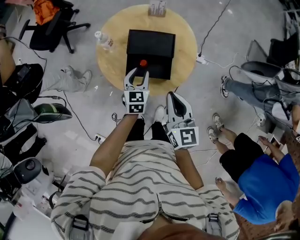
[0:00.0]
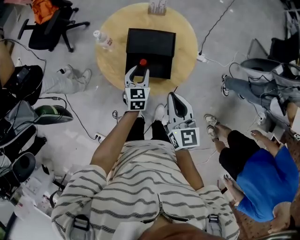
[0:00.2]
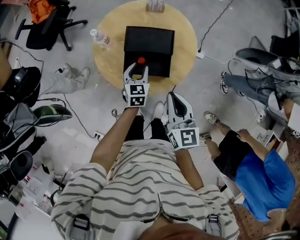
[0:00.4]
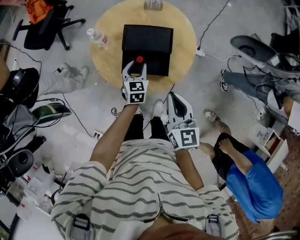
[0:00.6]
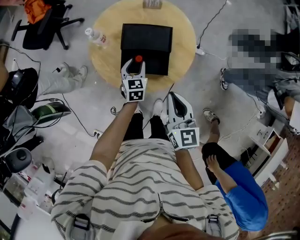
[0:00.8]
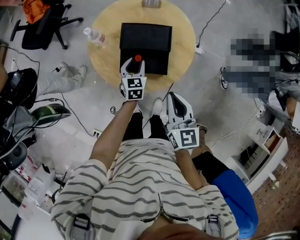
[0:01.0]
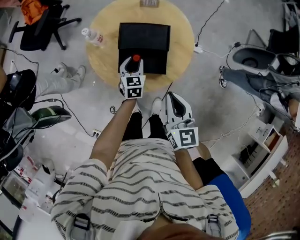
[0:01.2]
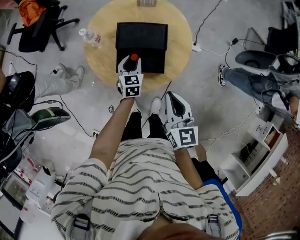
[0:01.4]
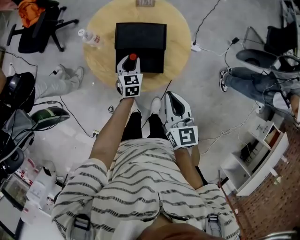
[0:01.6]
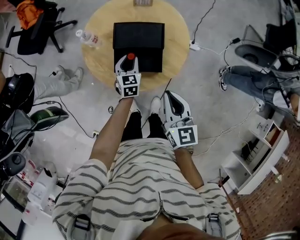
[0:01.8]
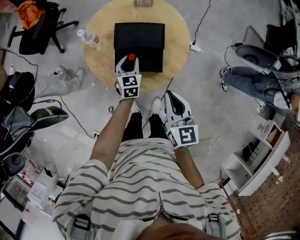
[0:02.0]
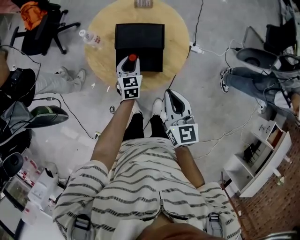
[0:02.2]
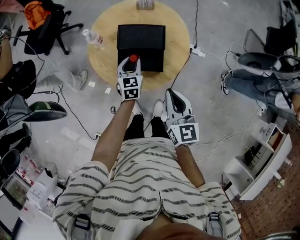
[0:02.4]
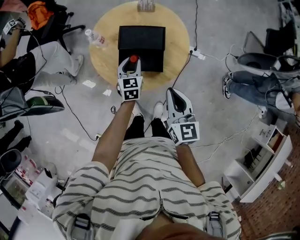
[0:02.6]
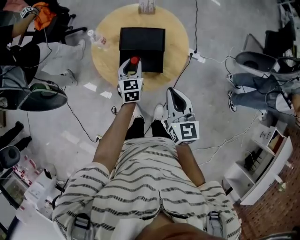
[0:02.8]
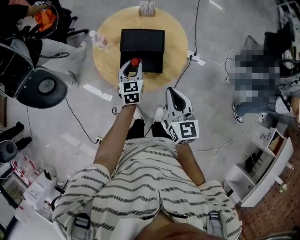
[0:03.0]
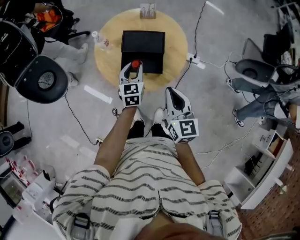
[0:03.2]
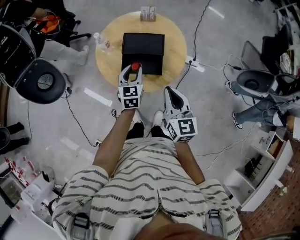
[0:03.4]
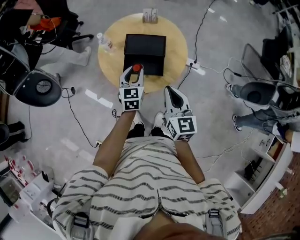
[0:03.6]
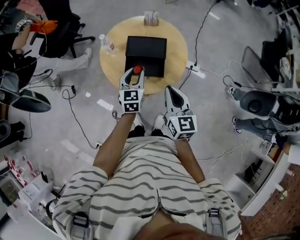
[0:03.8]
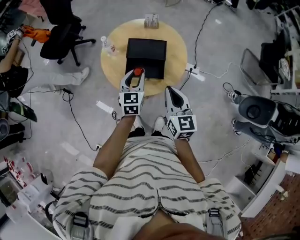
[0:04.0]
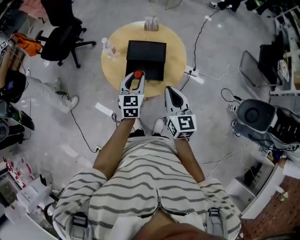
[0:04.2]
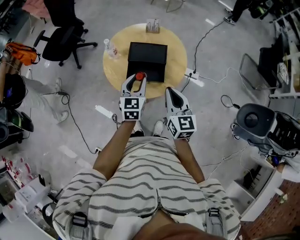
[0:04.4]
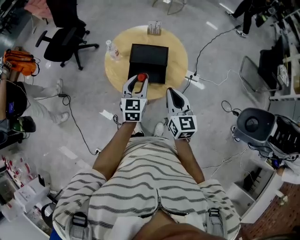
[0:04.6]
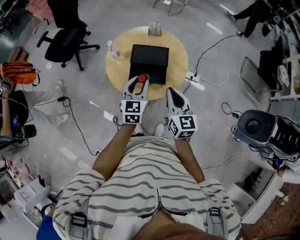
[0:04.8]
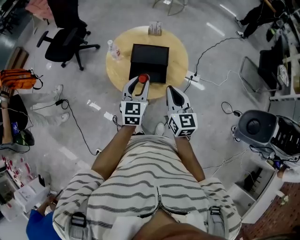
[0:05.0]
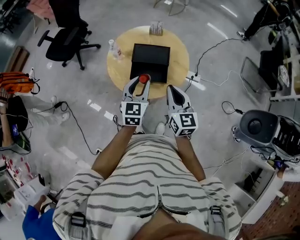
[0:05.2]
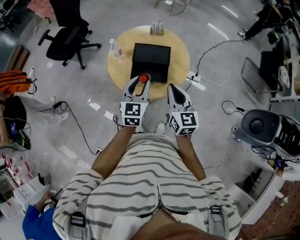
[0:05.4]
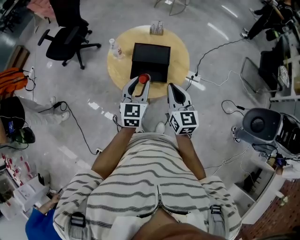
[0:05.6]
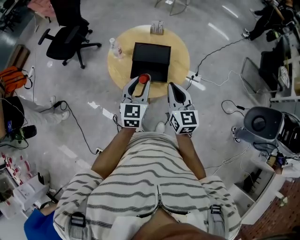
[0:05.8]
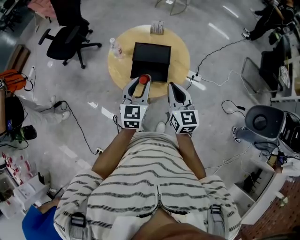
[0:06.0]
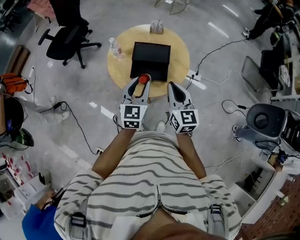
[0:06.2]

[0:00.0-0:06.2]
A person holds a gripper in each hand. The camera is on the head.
0.0 to 1.6 s: The left gripper moves downward, some 5 cm.
1.6 to 3.2 s: The left gripper travels upward and backward by approximately 15 cm, while the right gripper ends up approximately 5 cm from where it was.
3.2 to 4.6 s: The left gripper travels upward by roughly 10 cm.
4.6 to 6.2 s: The left gripper shifts some 5 cm backward.

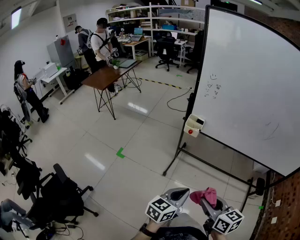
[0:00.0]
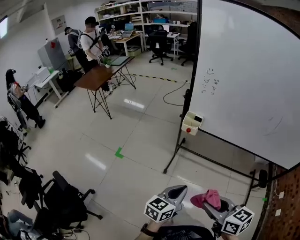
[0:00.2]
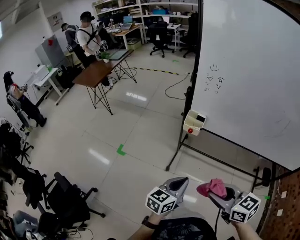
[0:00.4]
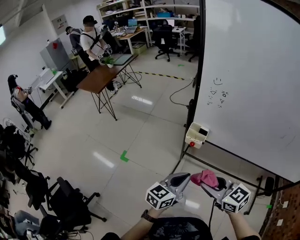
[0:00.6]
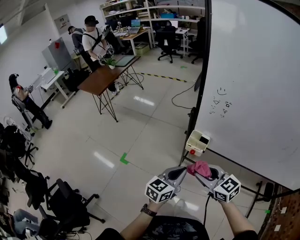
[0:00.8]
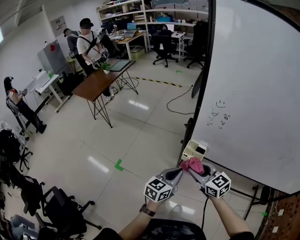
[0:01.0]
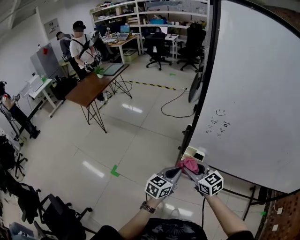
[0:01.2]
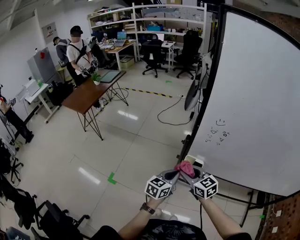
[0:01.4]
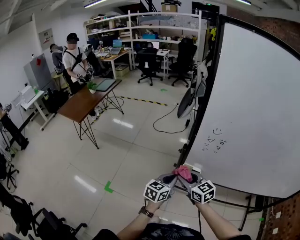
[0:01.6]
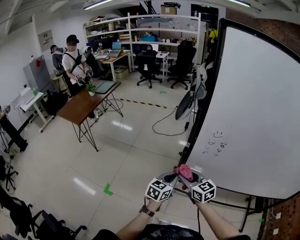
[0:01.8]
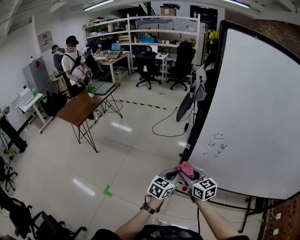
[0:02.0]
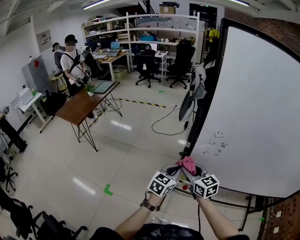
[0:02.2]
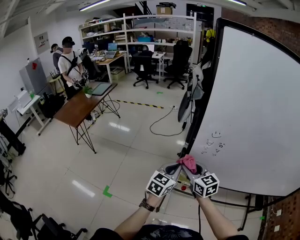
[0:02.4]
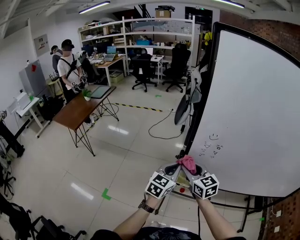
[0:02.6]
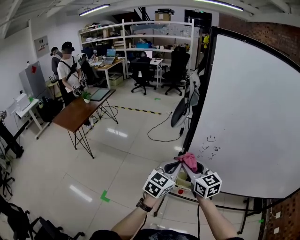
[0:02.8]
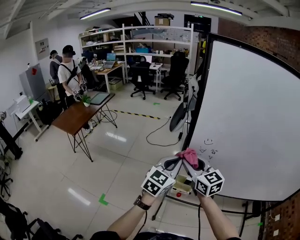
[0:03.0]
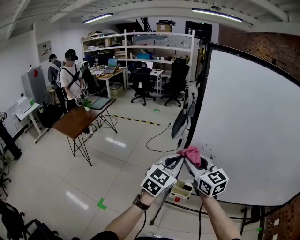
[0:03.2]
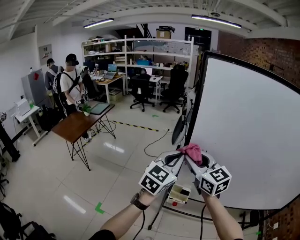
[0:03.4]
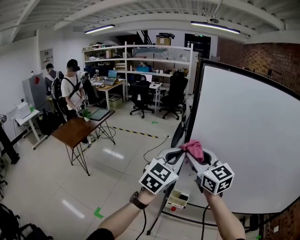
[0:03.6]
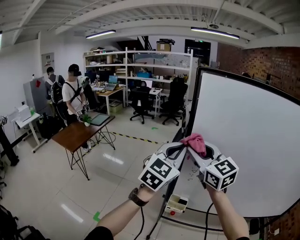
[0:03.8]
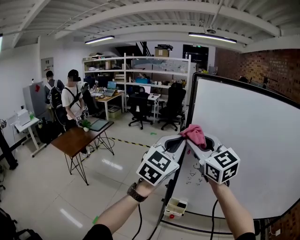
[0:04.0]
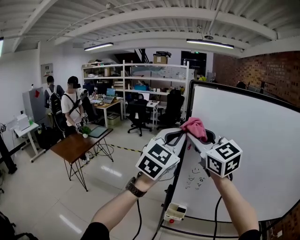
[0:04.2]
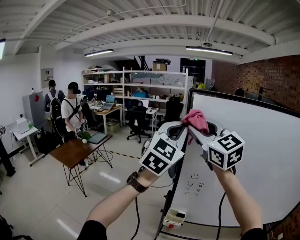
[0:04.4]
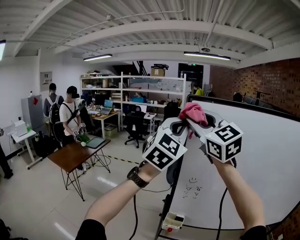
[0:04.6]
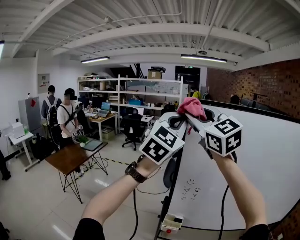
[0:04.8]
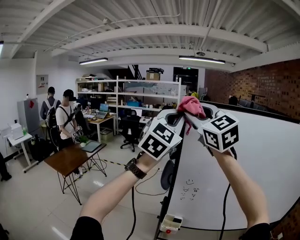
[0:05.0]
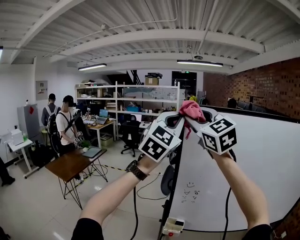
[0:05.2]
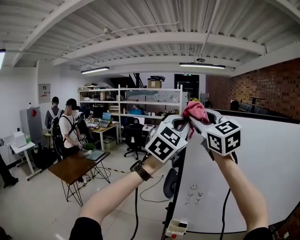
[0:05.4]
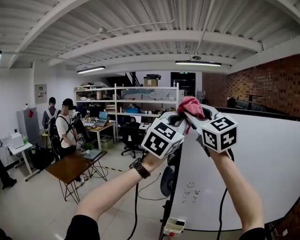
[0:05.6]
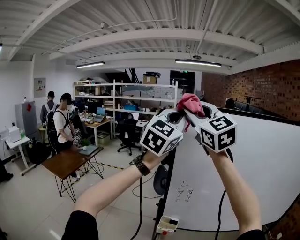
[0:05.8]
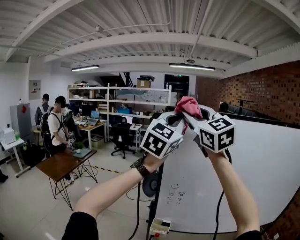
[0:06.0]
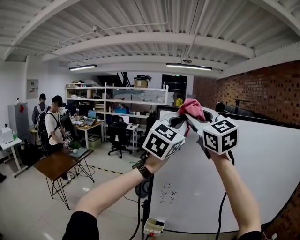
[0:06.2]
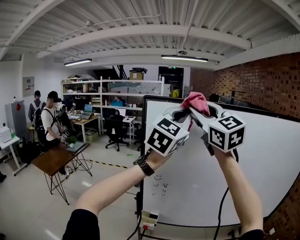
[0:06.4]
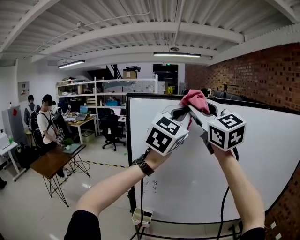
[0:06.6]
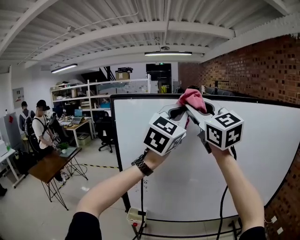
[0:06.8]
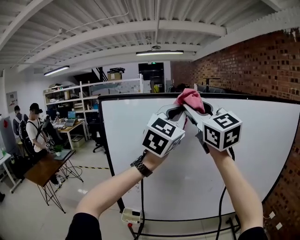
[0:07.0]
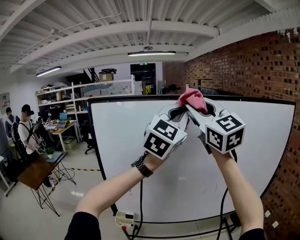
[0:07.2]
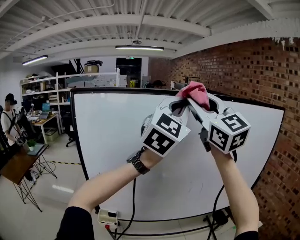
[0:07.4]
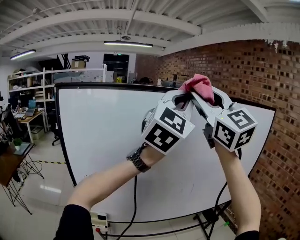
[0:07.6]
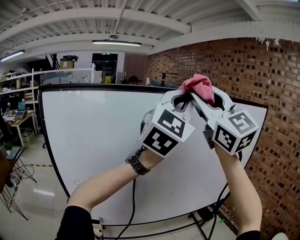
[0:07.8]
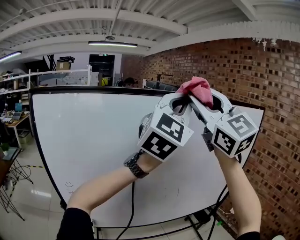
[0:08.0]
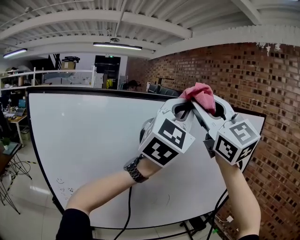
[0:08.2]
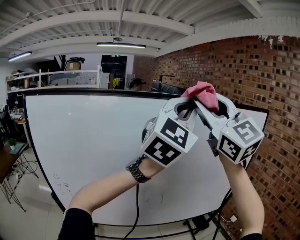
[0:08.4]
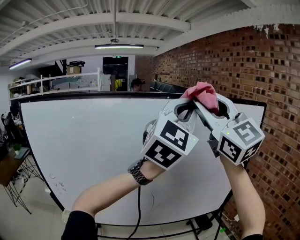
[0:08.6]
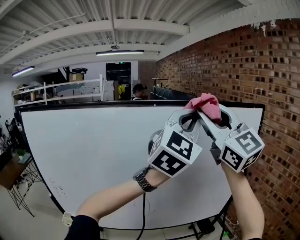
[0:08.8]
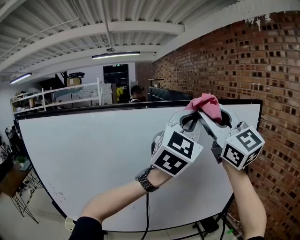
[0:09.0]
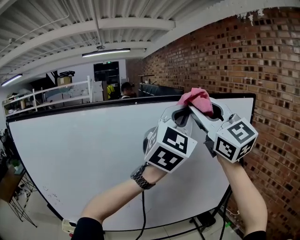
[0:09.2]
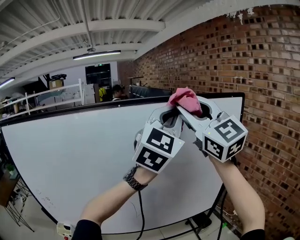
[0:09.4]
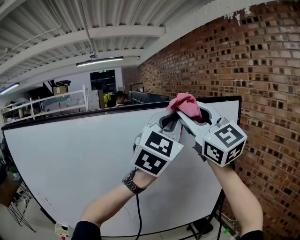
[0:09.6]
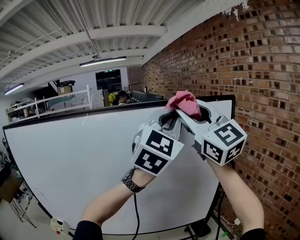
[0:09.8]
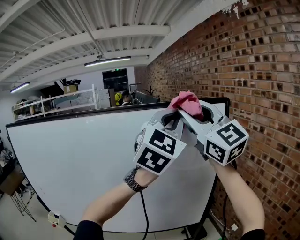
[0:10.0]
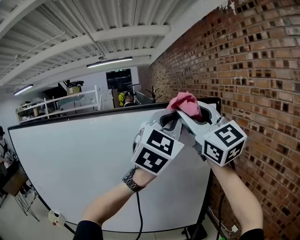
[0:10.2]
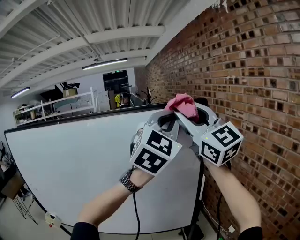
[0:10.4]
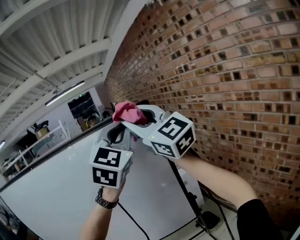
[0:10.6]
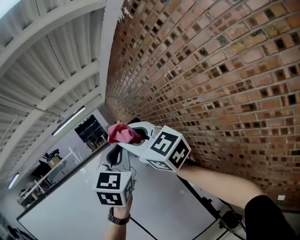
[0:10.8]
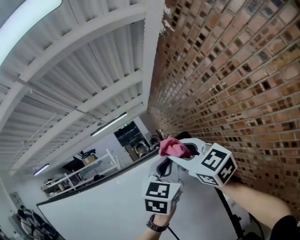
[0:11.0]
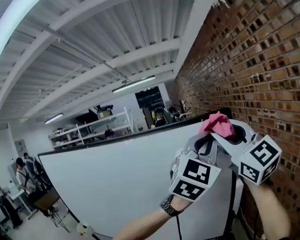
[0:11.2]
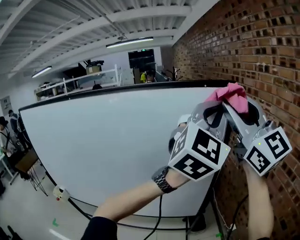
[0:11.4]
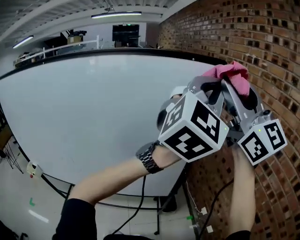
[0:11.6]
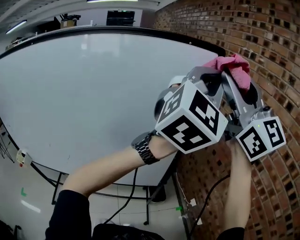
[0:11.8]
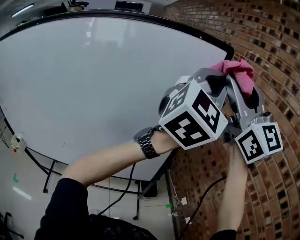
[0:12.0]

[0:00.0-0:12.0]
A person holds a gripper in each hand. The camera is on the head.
0.0 to 1.6 s: The two grippers travel together, forward, about 50 cm. The right gripper swivels approximately 20 degrees.
1.6 to 3.0 s: Both grippers travel together upward, approximately 20 cm. The left gripper rotates roughly 30 degrees.
3.0 to 4.4 s: Both grippers travel together upward, approximately 30 cm. The left gripper swivels some 30 degrees, while the right gripper turns by about 30 degrees.
4.4 to 6.0 s: The right gripper heads upward, covering approximately 10 cm. Meanwhile the left gripper is displaced upward and to the right by roughly 10 cm.
6.0 to 7.6 s: The two grippers go approximately 30 cm to the right. The left gripper turns by about 20 degrees. The right gripper swivels about 20 degrees.
7.6 to 9.0 s: Both grippers move to the right, roughly 30 cm.
9.0 to 10.4 s: The grippers both shift to the right by roughly 30 cm.
10.4 to 12.0 s: The grippers both shift to the right by about 10 cm.

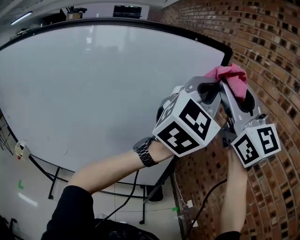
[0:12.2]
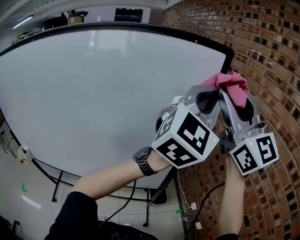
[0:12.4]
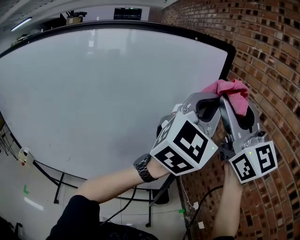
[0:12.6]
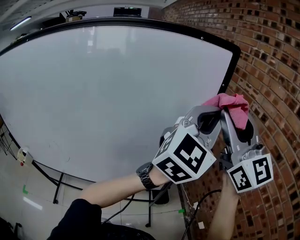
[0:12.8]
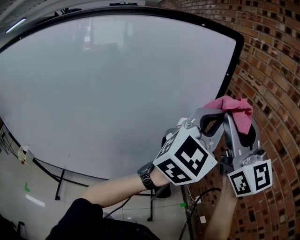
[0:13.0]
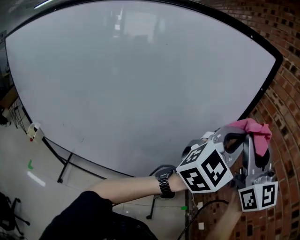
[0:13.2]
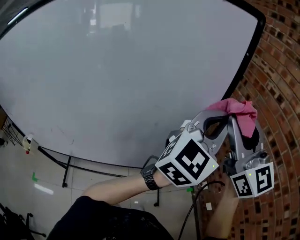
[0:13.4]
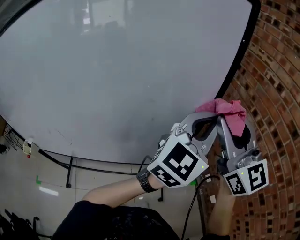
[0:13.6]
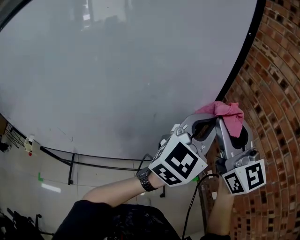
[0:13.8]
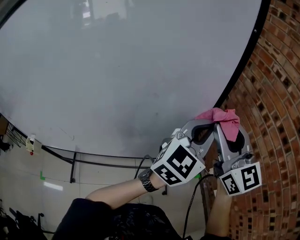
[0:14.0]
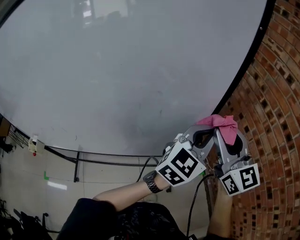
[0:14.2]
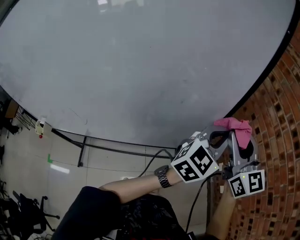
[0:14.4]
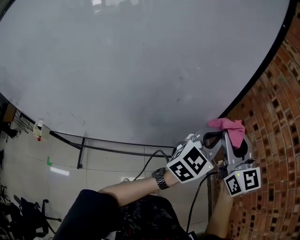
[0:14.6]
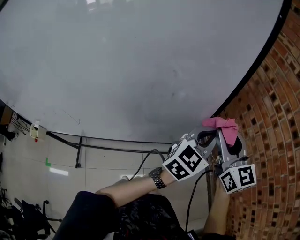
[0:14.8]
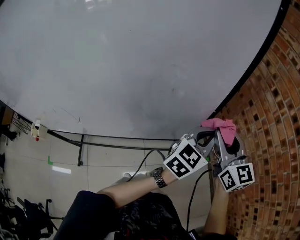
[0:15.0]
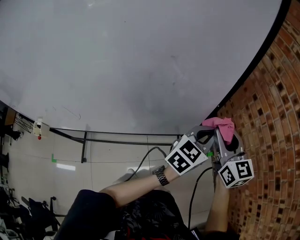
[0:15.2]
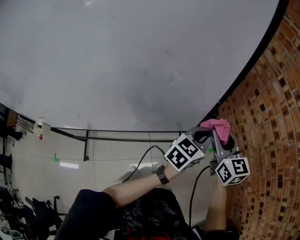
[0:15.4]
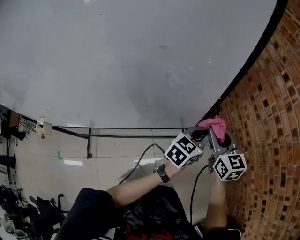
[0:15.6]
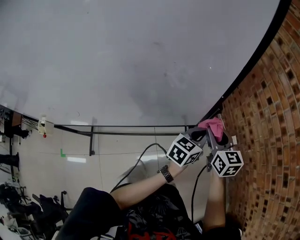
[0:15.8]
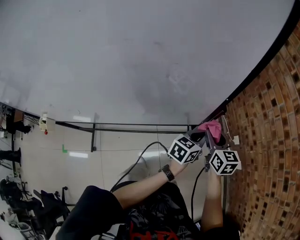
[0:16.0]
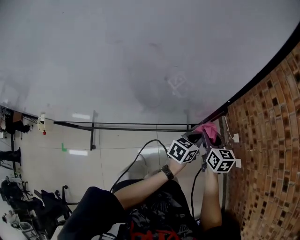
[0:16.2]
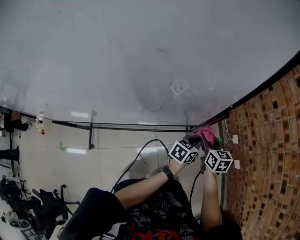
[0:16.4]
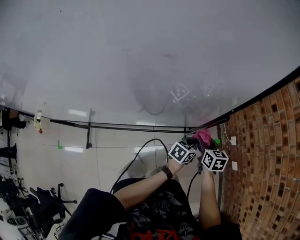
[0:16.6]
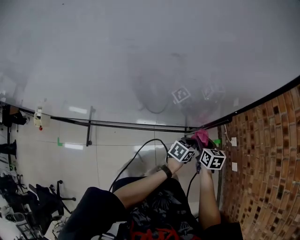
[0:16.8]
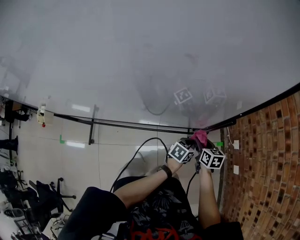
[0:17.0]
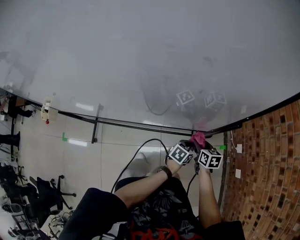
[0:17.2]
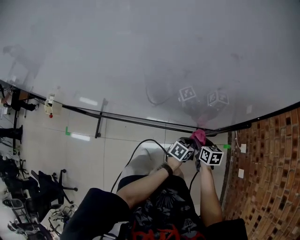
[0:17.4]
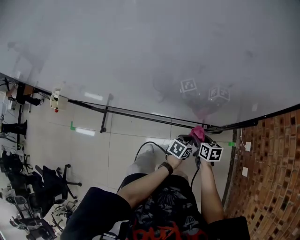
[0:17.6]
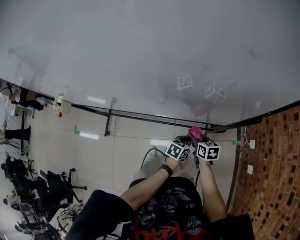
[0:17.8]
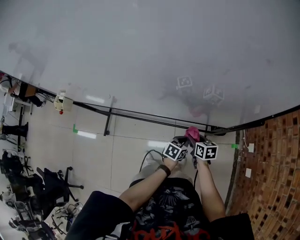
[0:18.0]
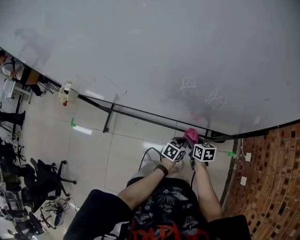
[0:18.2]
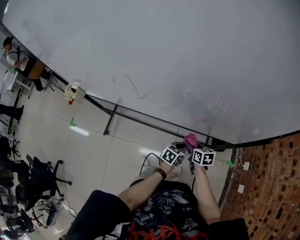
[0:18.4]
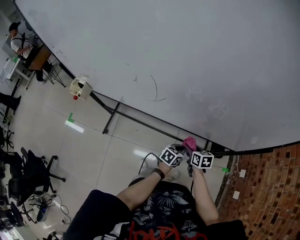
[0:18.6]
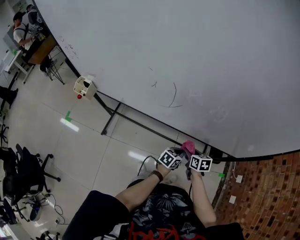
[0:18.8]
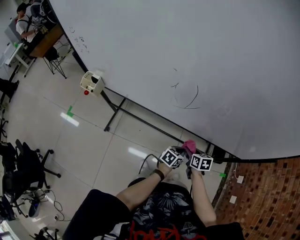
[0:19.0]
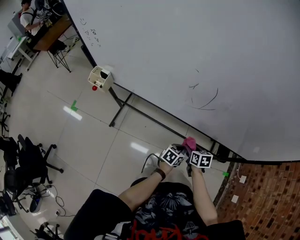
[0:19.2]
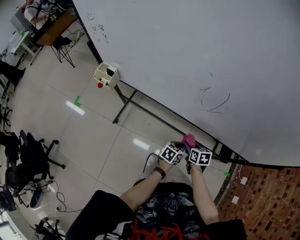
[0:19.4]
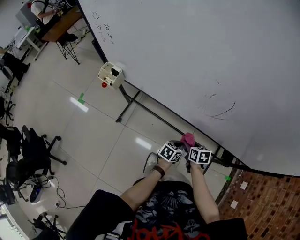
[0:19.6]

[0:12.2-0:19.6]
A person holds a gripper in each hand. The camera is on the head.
12.2 to 13.6 s: The grippers both shift downward by some 20 cm.
13.6 to 15.2 s: Both grippers travel together downward, about 25 cm. The left gripper changes its angle by approximately 30 degrees; the right gripper turns by about 30 degrees.
15.2 to 16.6 s: The two grippers go approximately 30 cm downward. The right gripper points its fingers some 30 degrees further downward, while the left gripper swivels some 40 degrees.
16.6 to 18.2 s: The left gripper changes place by approximately 25 cm, and rotates some 20 degrees, while the right gripper shifts by approximately 25 cm, and swivels approximately 20 degrees.
18.2 to 19.6 s: Both grippers travel together to the left, some 30 cm.
